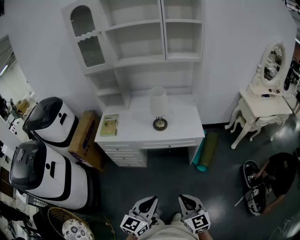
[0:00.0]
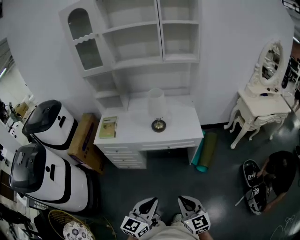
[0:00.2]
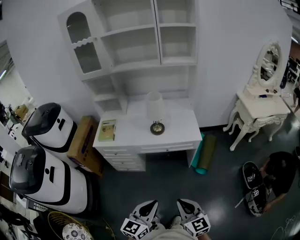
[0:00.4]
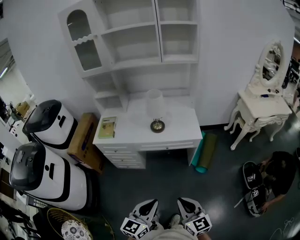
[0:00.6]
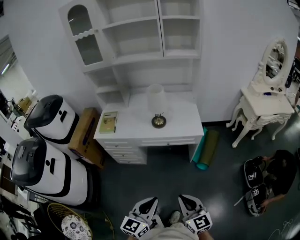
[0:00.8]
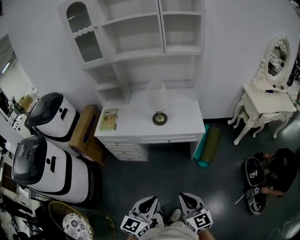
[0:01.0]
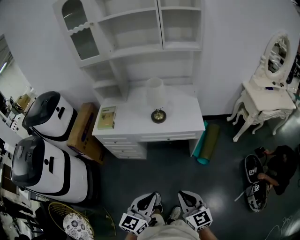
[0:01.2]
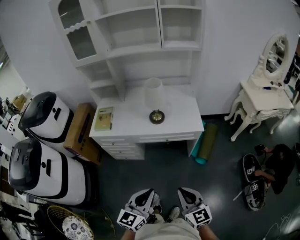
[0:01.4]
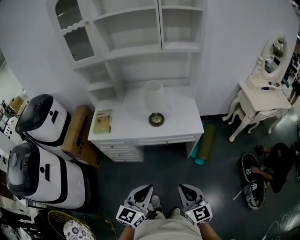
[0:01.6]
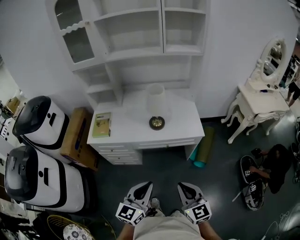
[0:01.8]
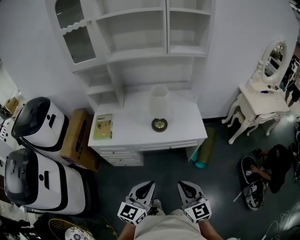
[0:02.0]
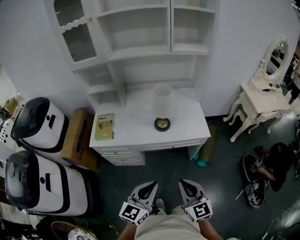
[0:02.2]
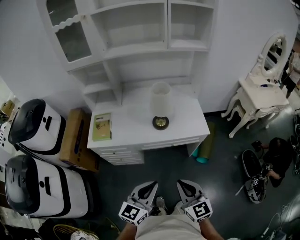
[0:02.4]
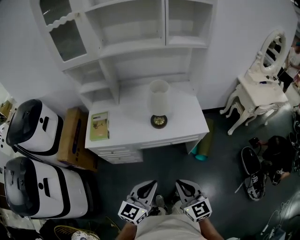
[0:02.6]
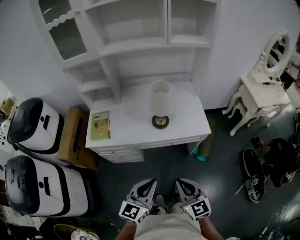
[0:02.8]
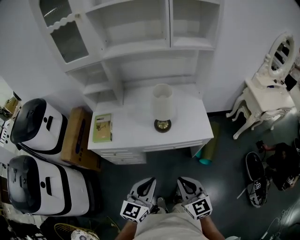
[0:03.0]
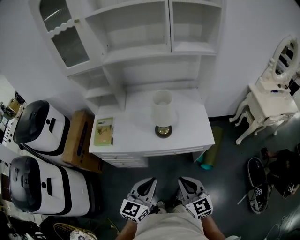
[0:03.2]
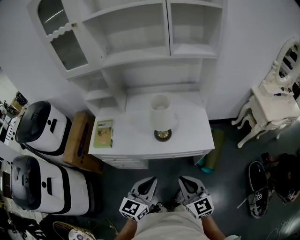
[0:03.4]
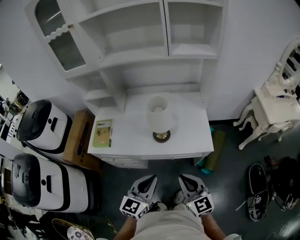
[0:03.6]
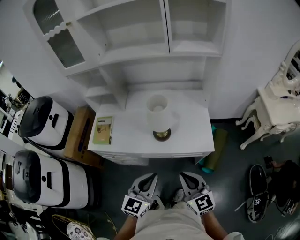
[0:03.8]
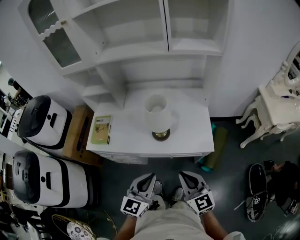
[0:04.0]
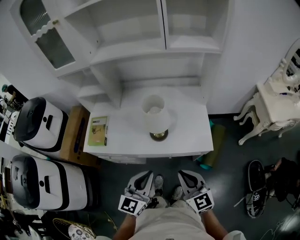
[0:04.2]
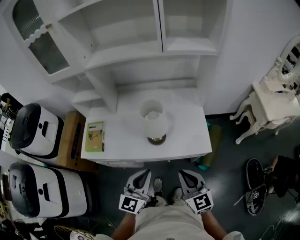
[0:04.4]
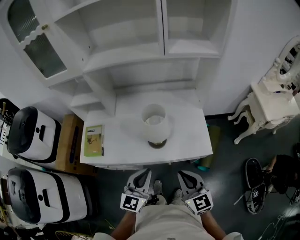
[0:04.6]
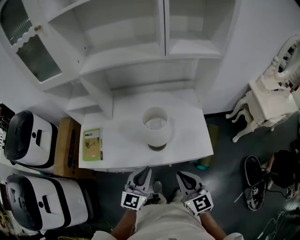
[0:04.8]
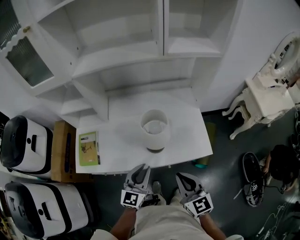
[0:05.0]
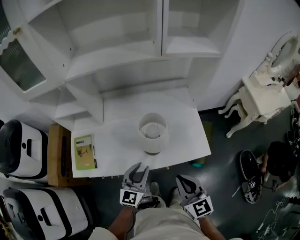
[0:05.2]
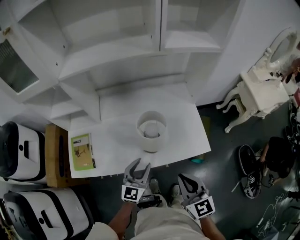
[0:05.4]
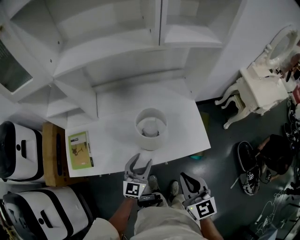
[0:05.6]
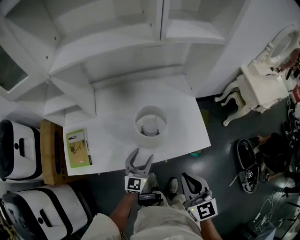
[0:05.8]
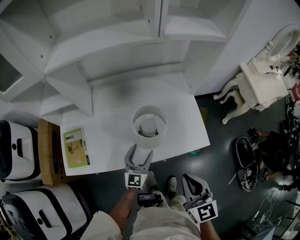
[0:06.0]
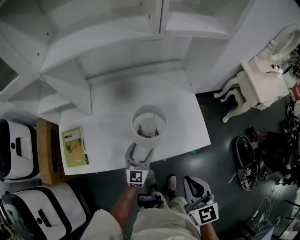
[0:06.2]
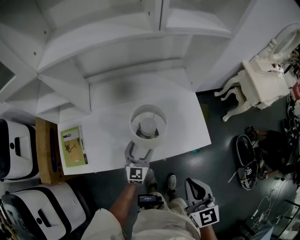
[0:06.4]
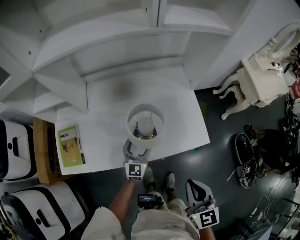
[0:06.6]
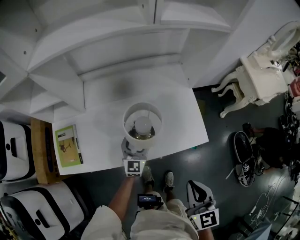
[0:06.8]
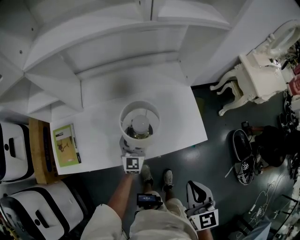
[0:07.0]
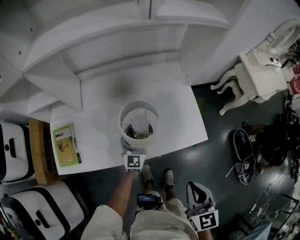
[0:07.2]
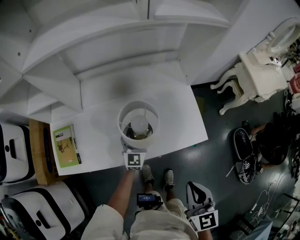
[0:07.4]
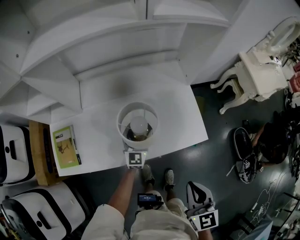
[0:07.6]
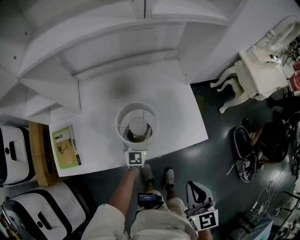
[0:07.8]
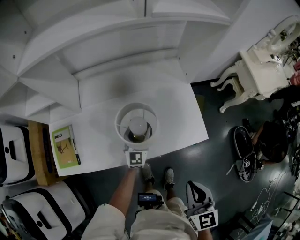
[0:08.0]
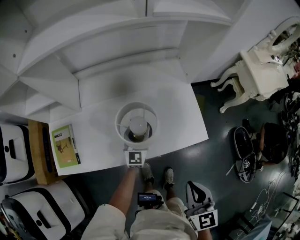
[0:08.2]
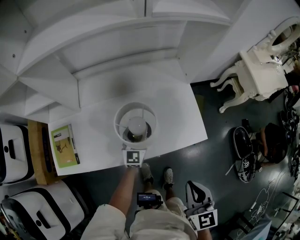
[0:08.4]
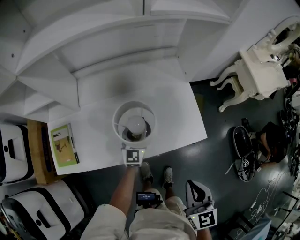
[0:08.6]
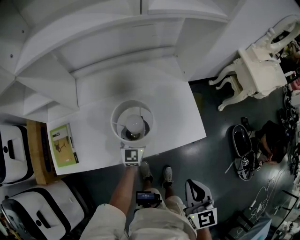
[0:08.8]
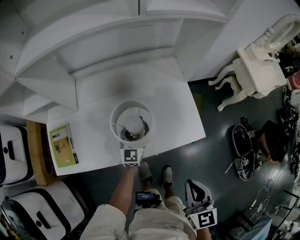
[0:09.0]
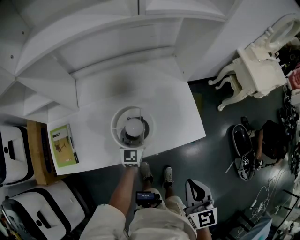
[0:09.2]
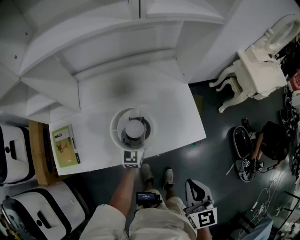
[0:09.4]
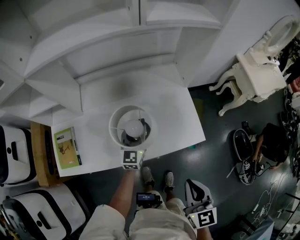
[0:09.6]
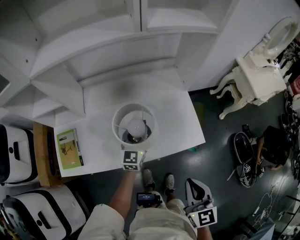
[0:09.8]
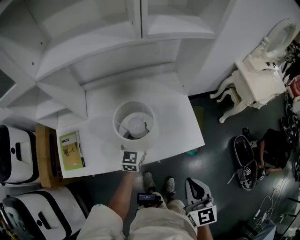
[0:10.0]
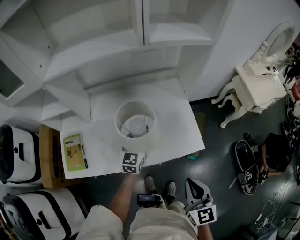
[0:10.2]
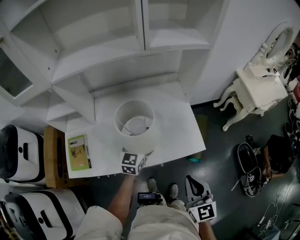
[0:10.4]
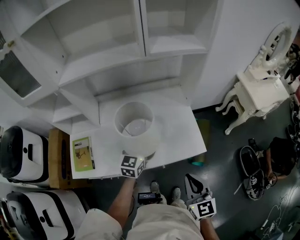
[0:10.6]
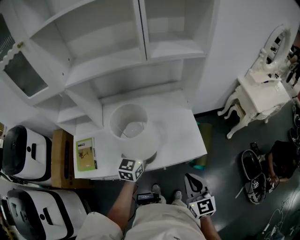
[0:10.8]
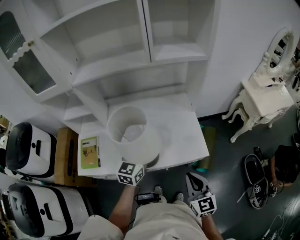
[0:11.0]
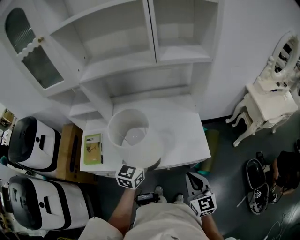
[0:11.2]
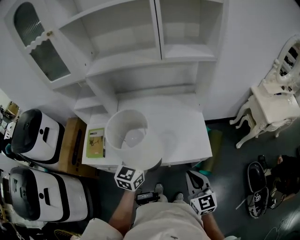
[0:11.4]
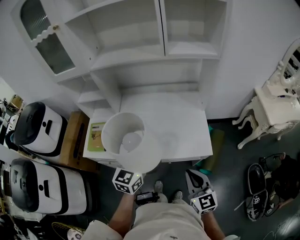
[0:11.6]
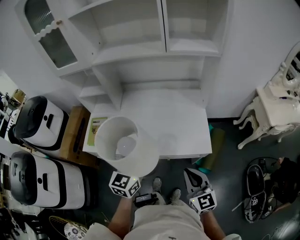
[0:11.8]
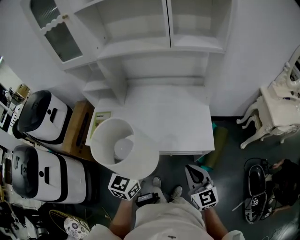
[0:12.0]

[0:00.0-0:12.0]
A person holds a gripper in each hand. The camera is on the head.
0:00.0 to 0:01.6: The two grippers go about 10 cm forward.
0:01.6 to 0:03.0: The two grippers go some 15 cm forward and to the left.
0:03.0 to 0:04.4: The right gripper is displaced forward and to the right by about 20 cm; the left gripper is displaced forward by approximately 15 cm.
0:04.4 to 0:06.0: The left gripper goes about 25 cm forward and downward, and opens, while the right gripper shifts approximately 5 cm forward.
0:06.0 to 0:07.6: The left gripper shifts roughly 10 cm forward, while the right gripper shifts by about 5 cm.
0:07.6 to 0:09.0: The left gripper closes its fingers.
0:09.0 to 0:10.4: The left gripper heads upward, covering roughly 10 cm.
0:10.4 to 0:12.0: The right gripper shifts approximately 5 cm backward, and rotates approximately 20 degrees. The left gripper moves backward and upward, some 25 cm.

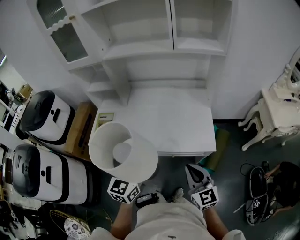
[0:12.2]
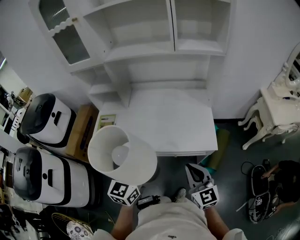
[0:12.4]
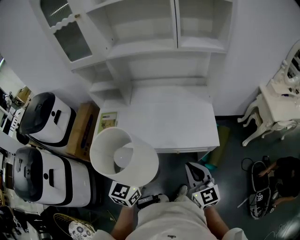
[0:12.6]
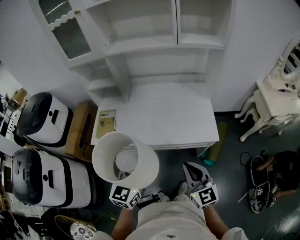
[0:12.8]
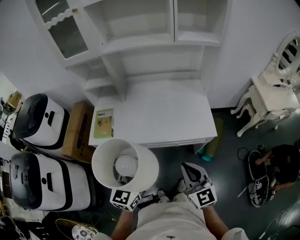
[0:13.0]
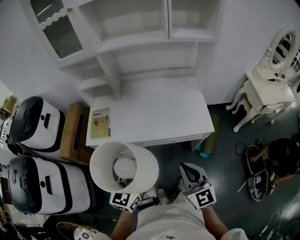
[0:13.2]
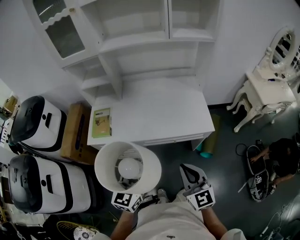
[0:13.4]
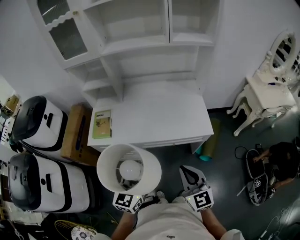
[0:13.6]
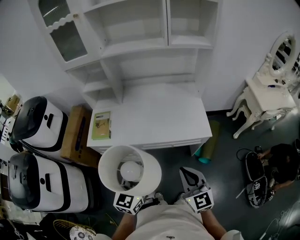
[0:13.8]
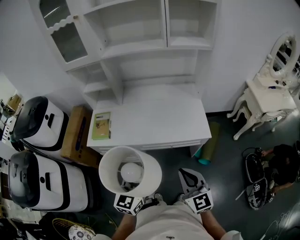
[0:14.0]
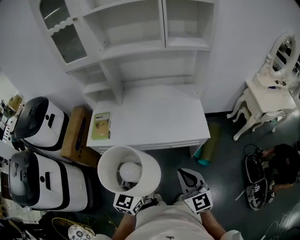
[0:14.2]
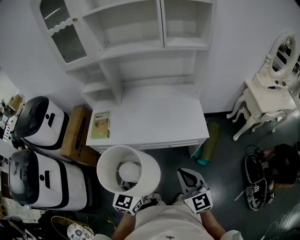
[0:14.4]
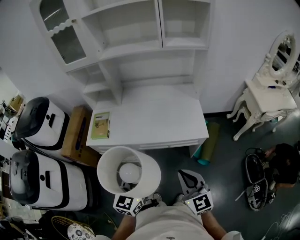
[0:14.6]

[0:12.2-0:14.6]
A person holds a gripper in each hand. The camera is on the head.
0:12.2 to 0:13.4: The left gripper is displaced backward and to the left by approximately 15 cm, while the right gripper goes some 15 cm to the left and backward.
0:13.4 to 0:14.6: The grippers both shift to the right by roughly 5 cm.

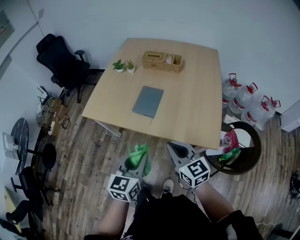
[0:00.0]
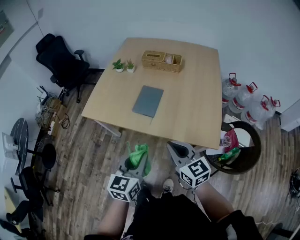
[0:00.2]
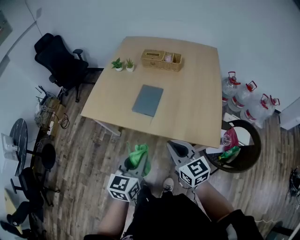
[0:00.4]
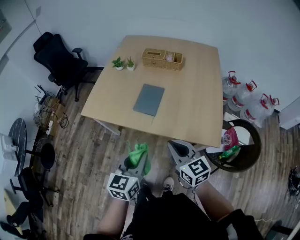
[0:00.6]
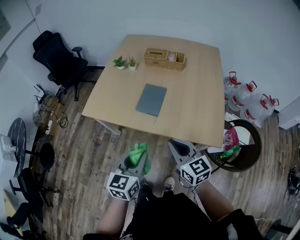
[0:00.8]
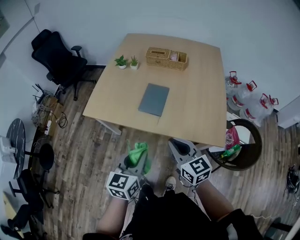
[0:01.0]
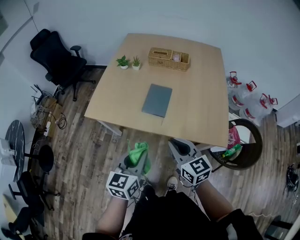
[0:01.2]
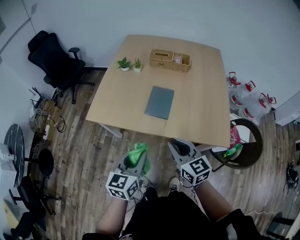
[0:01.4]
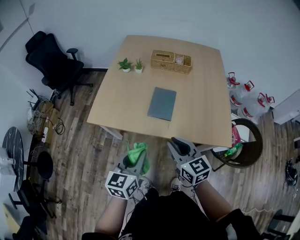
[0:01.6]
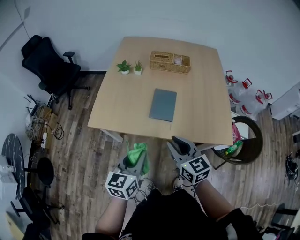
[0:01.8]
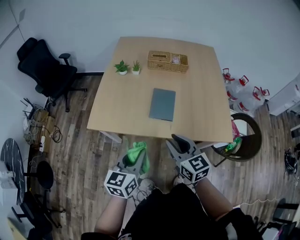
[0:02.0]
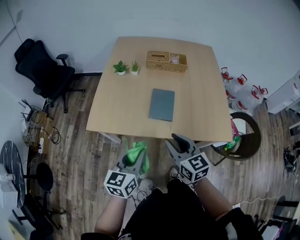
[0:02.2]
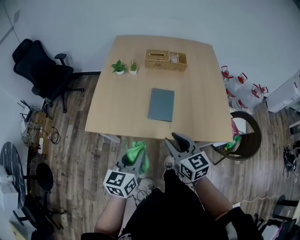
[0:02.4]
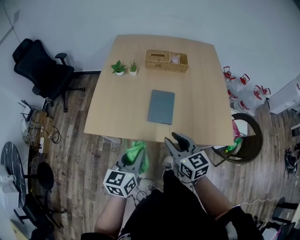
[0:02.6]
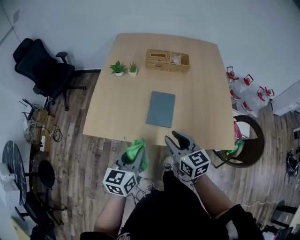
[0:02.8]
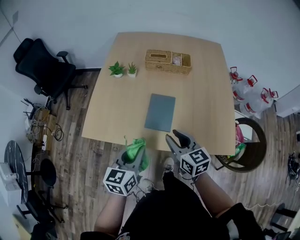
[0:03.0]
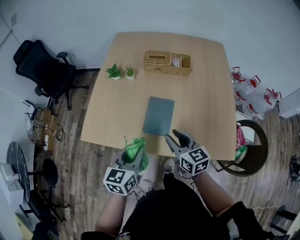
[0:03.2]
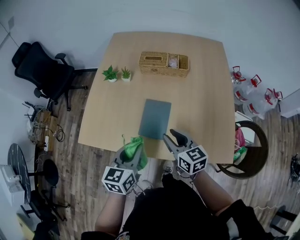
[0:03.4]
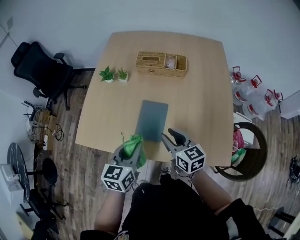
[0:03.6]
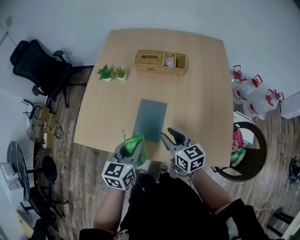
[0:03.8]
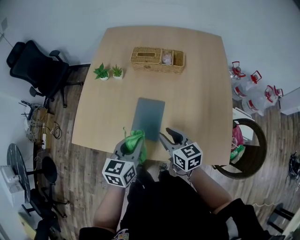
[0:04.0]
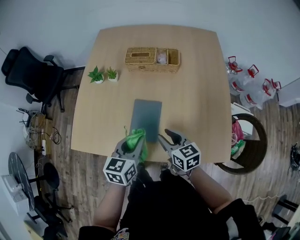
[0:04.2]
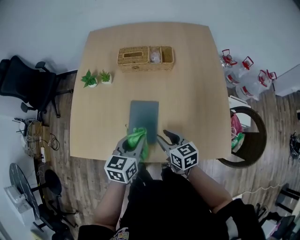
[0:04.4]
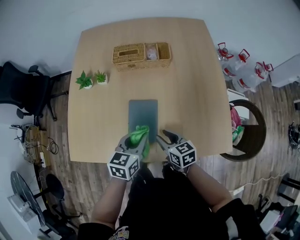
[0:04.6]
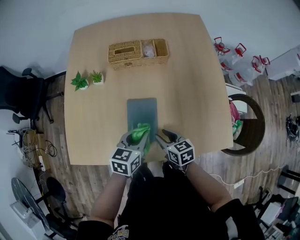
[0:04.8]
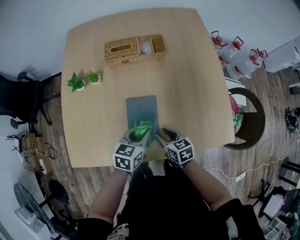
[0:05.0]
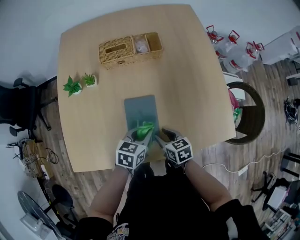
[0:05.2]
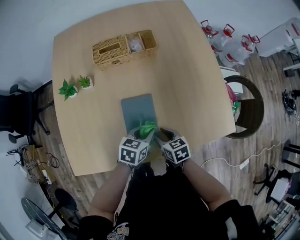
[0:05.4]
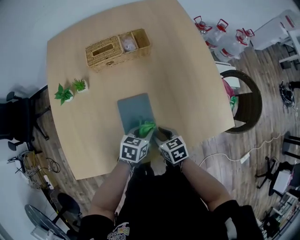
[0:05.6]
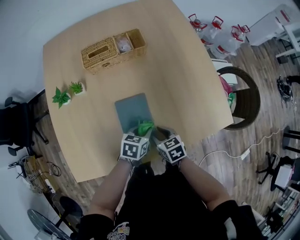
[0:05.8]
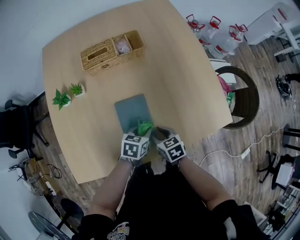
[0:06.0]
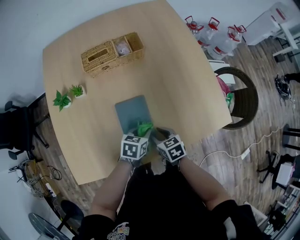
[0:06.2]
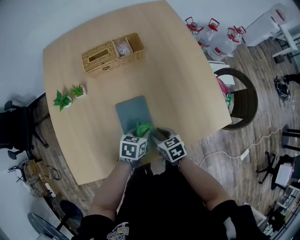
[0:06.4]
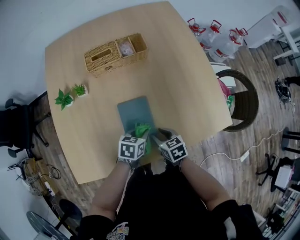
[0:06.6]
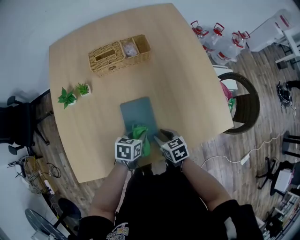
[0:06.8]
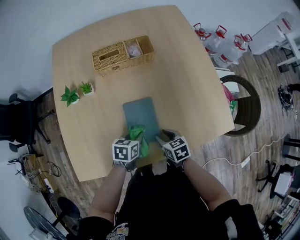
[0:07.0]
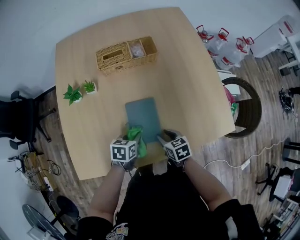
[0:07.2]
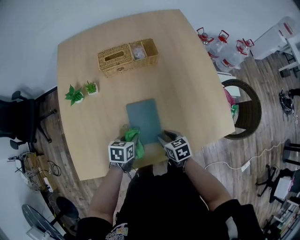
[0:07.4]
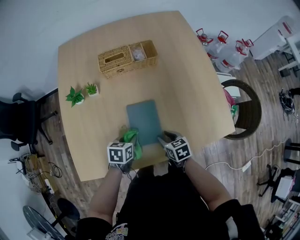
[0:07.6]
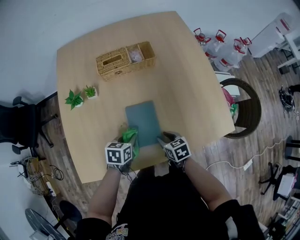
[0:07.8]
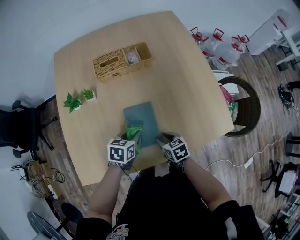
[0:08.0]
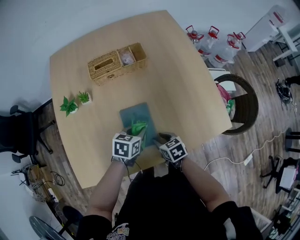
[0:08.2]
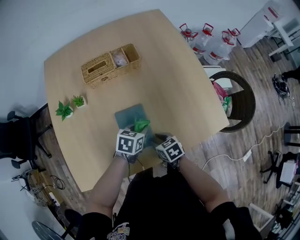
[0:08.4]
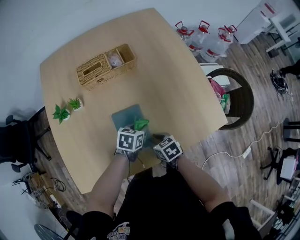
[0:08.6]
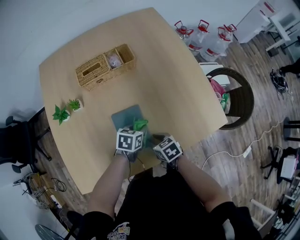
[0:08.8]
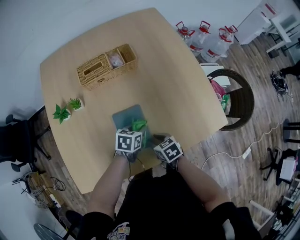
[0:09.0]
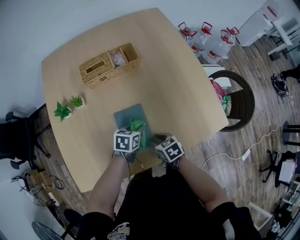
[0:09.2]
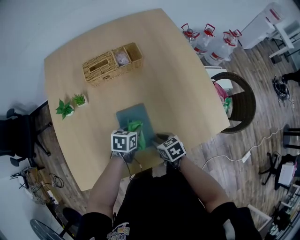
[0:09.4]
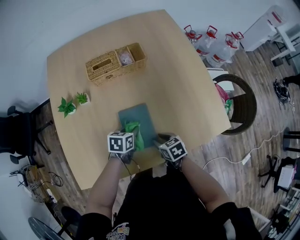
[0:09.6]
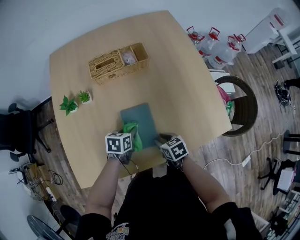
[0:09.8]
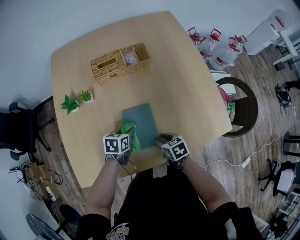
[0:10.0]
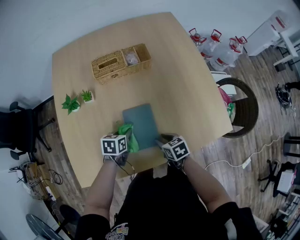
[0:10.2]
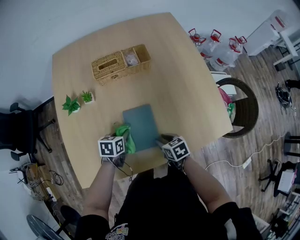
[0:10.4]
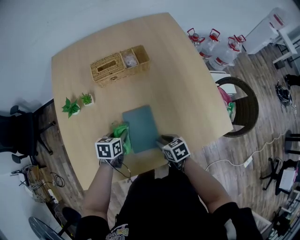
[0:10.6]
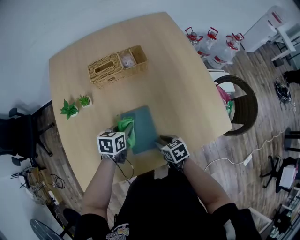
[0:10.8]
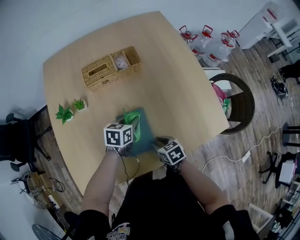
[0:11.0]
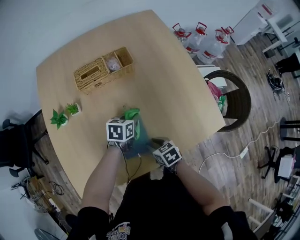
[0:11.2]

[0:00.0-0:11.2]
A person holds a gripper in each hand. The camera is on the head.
0:00.0 to 0:01.6: Both grippers move to the left and forward, some 15 cm.
0:01.6 to 0:03.2: Both grippers travel together forward, about 15 cm.
0:03.2 to 0:04.8: The right gripper shifts about 15 cm downward, and swivels some 20 degrees. The left gripper heads forward, downward and to the right, covering some 20 cm, and rotates about 20 degrees.
0:04.8 to 0:06.4: The right gripper moves approximately 5 cm. The left gripper goes approximately 10 cm downward, and turns by roughly 30 degrees.
0:06.4 to 0:08.0: The left gripper goes some 5 cm to the left.
0:08.0 to 0:09.6: The left gripper reaches roughly 10 cm to the right, then returns.
0:09.6 to 0:11.2: The left gripper travels forward and to the right by about 10 cm.
